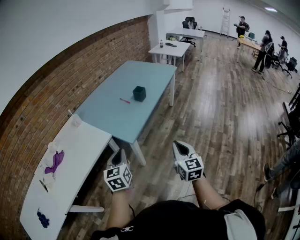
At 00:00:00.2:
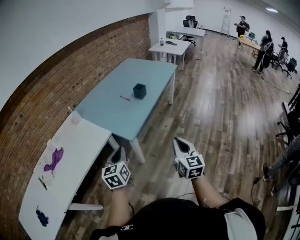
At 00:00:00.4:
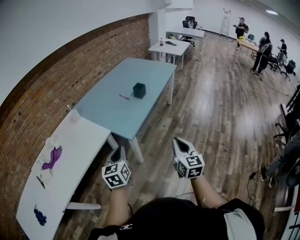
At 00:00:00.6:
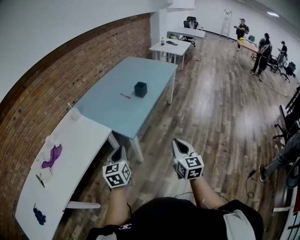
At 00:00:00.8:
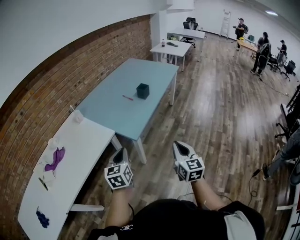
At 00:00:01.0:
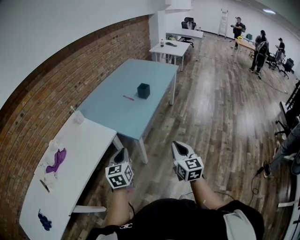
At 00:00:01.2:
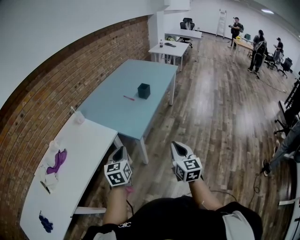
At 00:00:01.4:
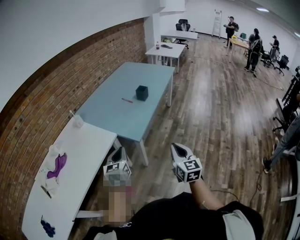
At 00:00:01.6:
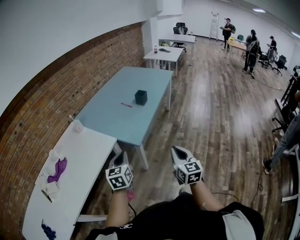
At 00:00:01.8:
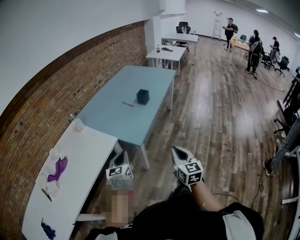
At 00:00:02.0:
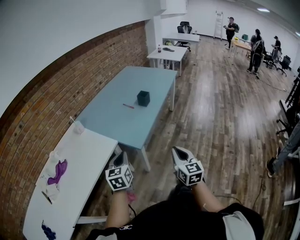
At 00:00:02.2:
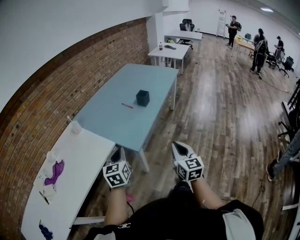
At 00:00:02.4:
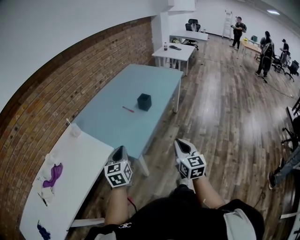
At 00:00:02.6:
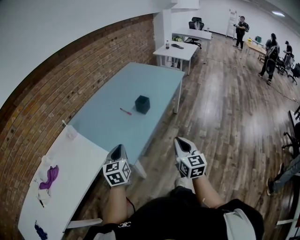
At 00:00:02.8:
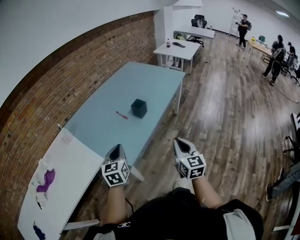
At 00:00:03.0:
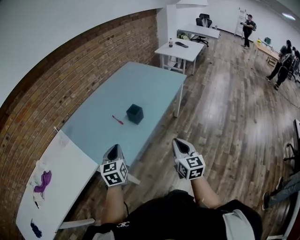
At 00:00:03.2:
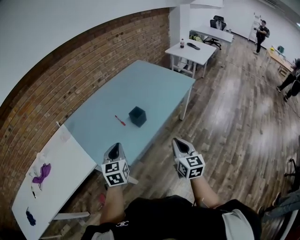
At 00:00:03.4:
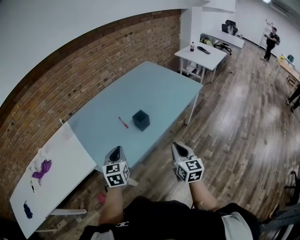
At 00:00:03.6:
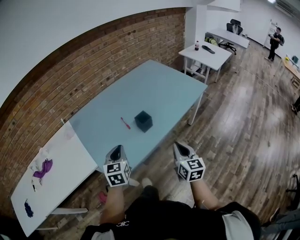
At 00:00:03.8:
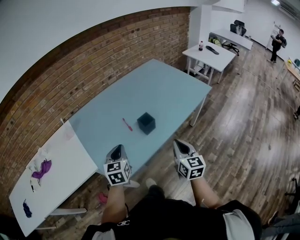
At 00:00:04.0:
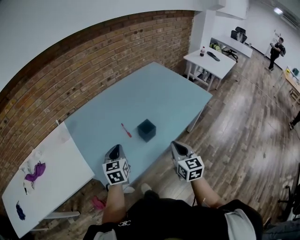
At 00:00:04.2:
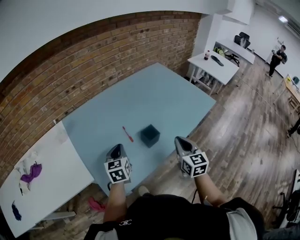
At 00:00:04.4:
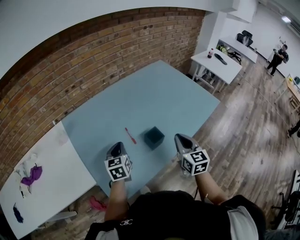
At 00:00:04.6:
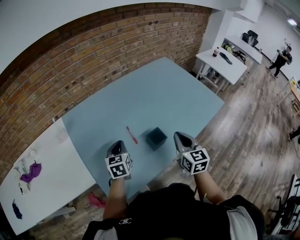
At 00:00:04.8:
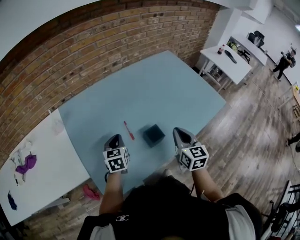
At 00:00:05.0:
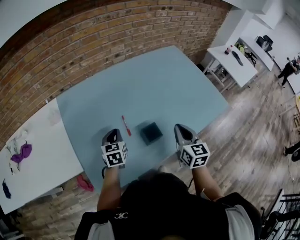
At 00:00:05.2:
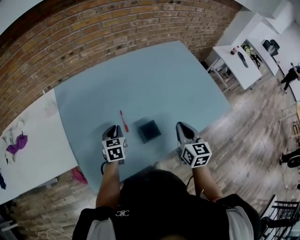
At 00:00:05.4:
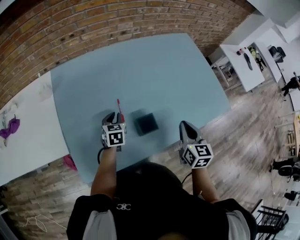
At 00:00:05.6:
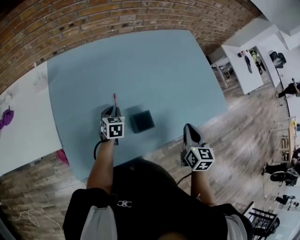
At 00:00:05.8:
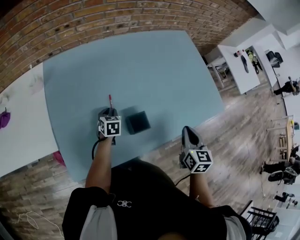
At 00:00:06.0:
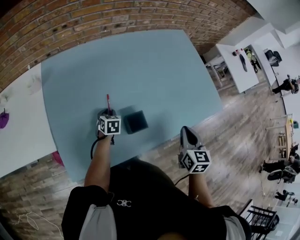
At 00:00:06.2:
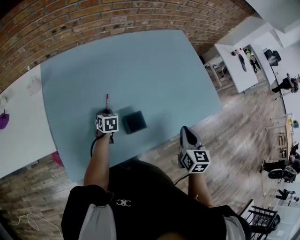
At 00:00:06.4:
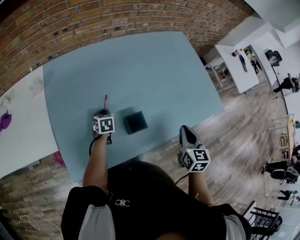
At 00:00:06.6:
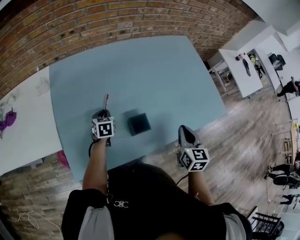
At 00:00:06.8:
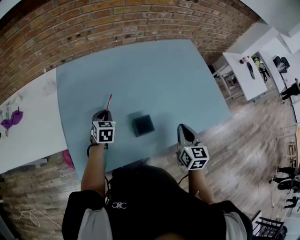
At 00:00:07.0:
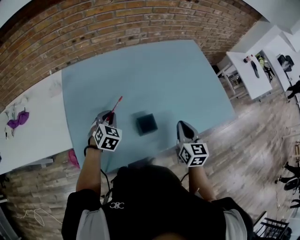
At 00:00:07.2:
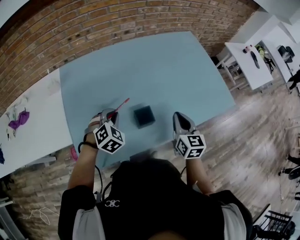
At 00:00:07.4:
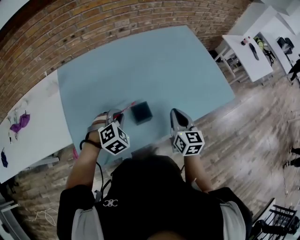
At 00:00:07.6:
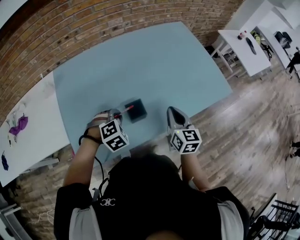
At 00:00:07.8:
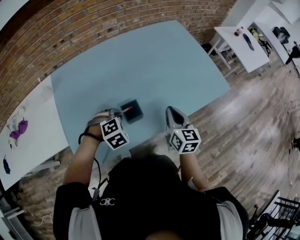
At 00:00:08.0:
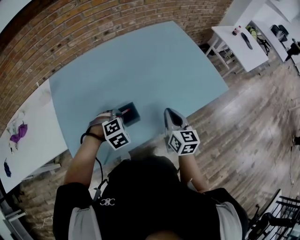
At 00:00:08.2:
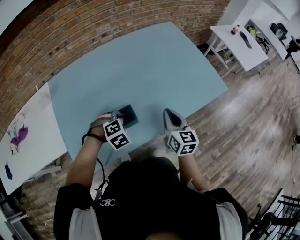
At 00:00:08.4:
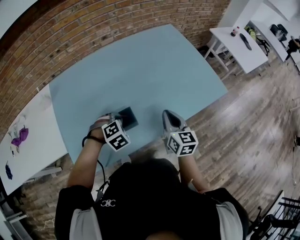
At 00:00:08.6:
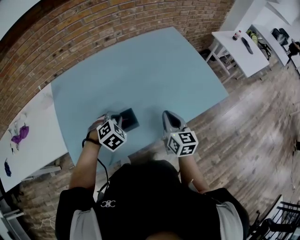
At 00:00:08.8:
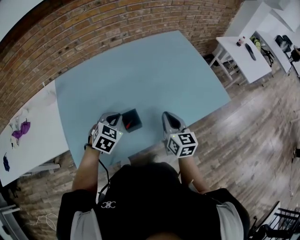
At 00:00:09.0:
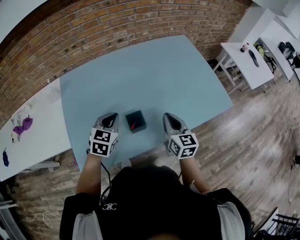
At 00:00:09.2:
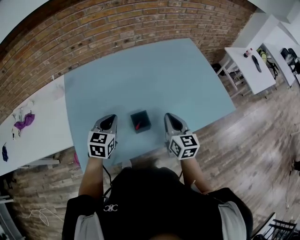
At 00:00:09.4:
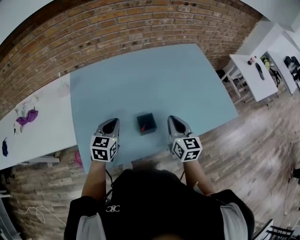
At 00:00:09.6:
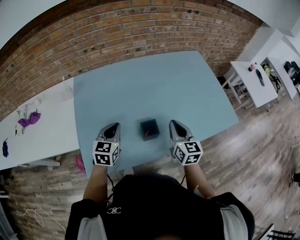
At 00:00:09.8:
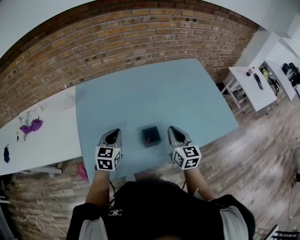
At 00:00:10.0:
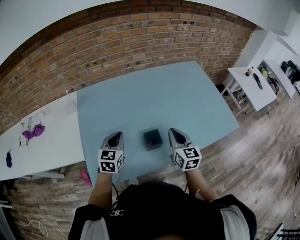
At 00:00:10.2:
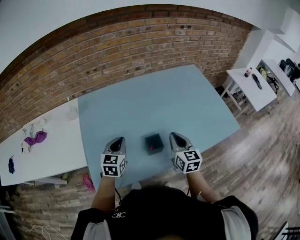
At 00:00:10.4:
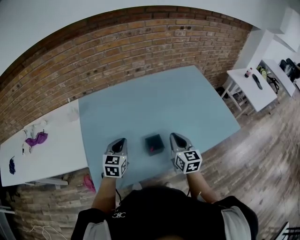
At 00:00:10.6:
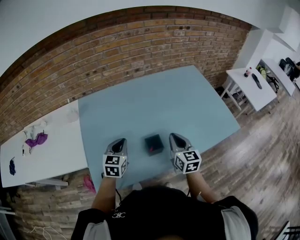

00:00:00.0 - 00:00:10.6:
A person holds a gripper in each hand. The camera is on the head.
00:00:00.0 - 00:00:01.6: Both grippers travel together to the left, roughly 10 cm.
00:00:01.6 - 00:00:03.0: The grippers both shift forward and to the right by some 35 cm.
00:00:03.0 - 00:00:04.6: The two grippers go approximately 30 cm forward. The left gripper rotates approximately 20 degrees. The right gripper changes its angle by about 20 degrees.
00:00:04.6 - 00:00:06.0: The left gripper is displaced downward by about 20 cm, swivels some 20 degrees, and opens, while the right gripper travels to the right by roughly 15 cm.
00:00:06.0 - 00:00:07.6: The left gripper shifts roughly 20 cm upward and backward, and rotates around the line of its fingers by about 70 degrees, clockwise from behind.
00:00:07.6 - 00:00:09.0: The left gripper is displaced upward by approximately 10 cm, and rotates around the line of its fingers by roughly 40 degrees, counterclockwise from behind.
00:00:09.0 - 00:00:10.6: The two grippers go roughly 5 cm to the left.

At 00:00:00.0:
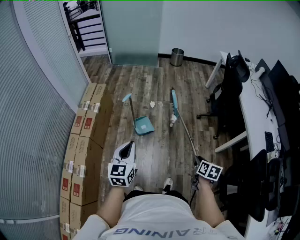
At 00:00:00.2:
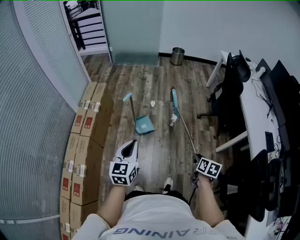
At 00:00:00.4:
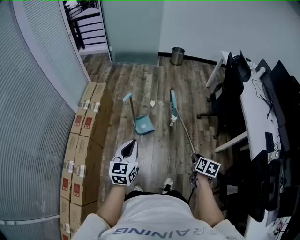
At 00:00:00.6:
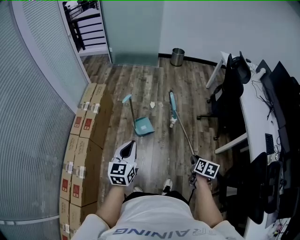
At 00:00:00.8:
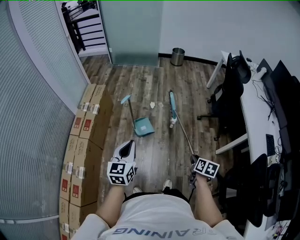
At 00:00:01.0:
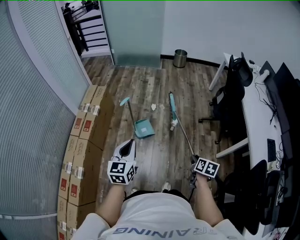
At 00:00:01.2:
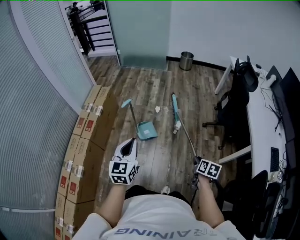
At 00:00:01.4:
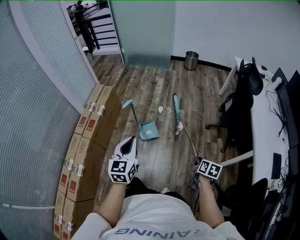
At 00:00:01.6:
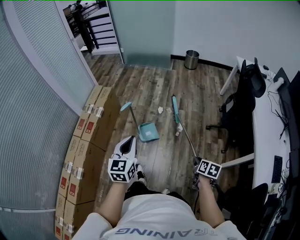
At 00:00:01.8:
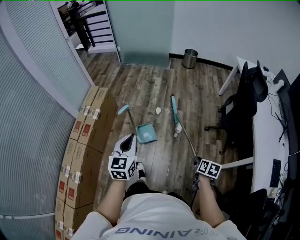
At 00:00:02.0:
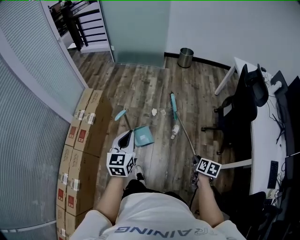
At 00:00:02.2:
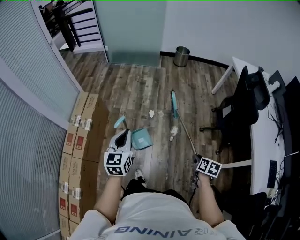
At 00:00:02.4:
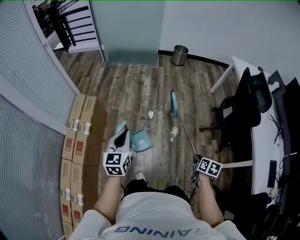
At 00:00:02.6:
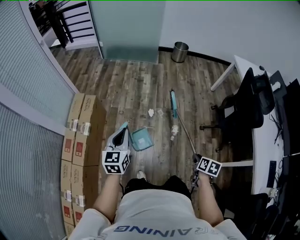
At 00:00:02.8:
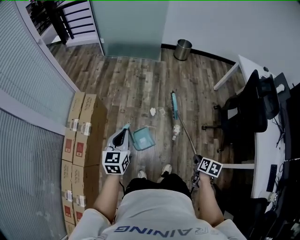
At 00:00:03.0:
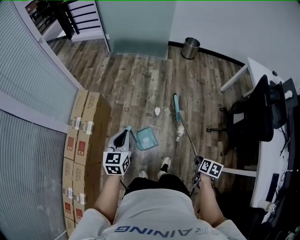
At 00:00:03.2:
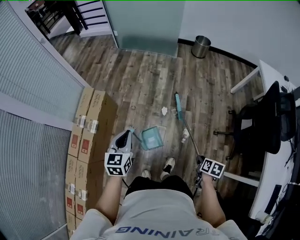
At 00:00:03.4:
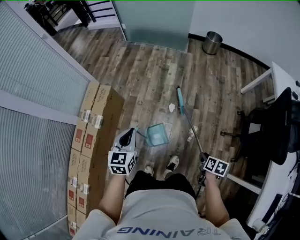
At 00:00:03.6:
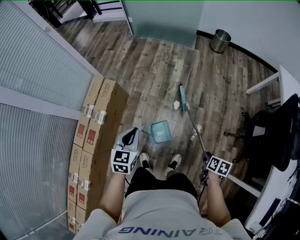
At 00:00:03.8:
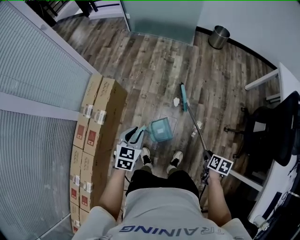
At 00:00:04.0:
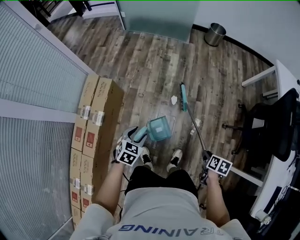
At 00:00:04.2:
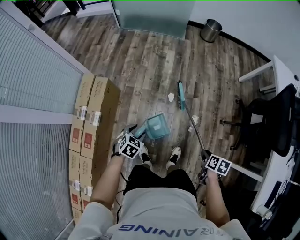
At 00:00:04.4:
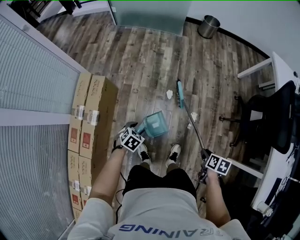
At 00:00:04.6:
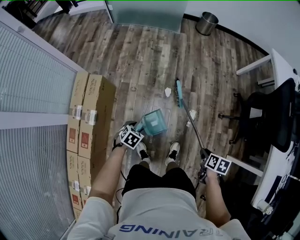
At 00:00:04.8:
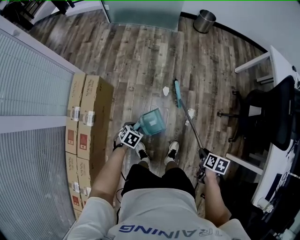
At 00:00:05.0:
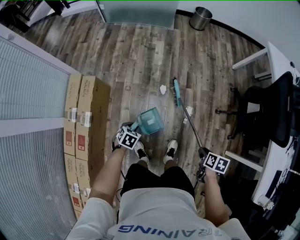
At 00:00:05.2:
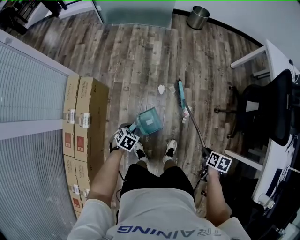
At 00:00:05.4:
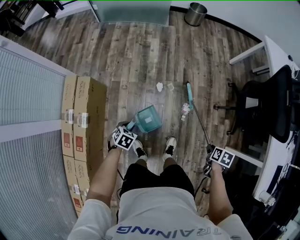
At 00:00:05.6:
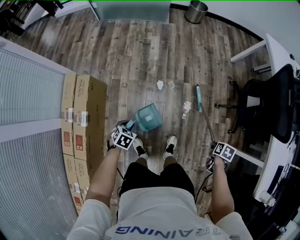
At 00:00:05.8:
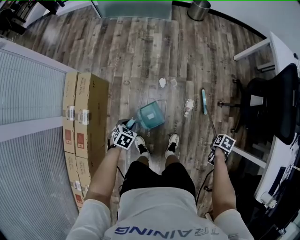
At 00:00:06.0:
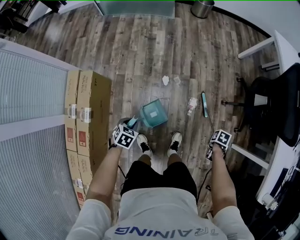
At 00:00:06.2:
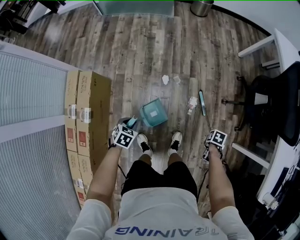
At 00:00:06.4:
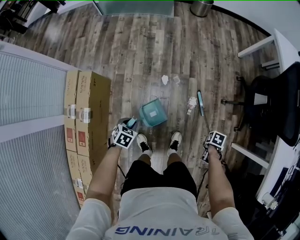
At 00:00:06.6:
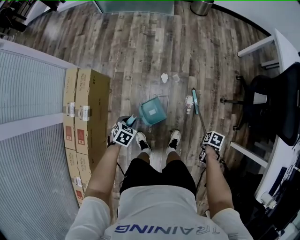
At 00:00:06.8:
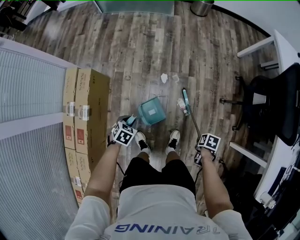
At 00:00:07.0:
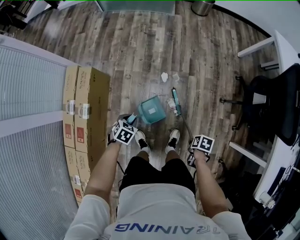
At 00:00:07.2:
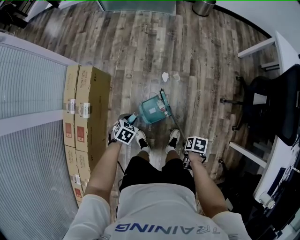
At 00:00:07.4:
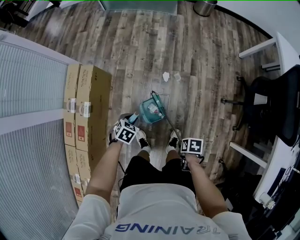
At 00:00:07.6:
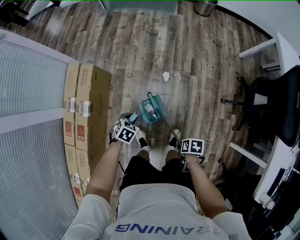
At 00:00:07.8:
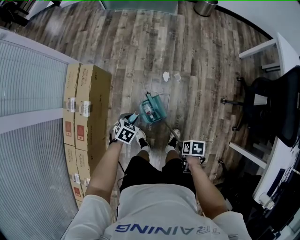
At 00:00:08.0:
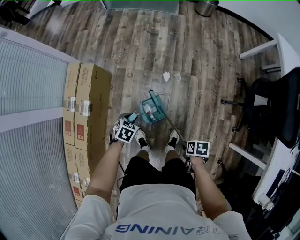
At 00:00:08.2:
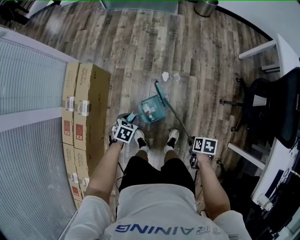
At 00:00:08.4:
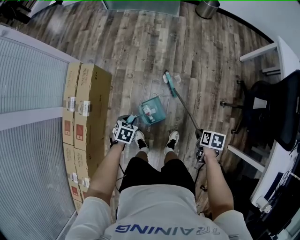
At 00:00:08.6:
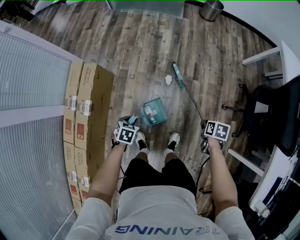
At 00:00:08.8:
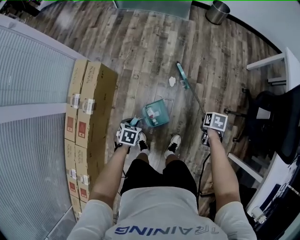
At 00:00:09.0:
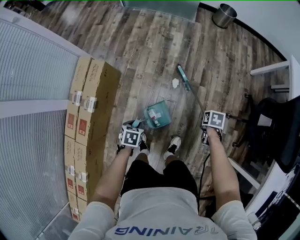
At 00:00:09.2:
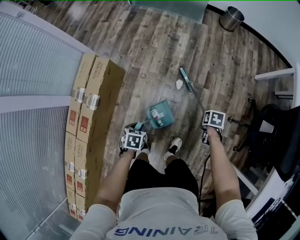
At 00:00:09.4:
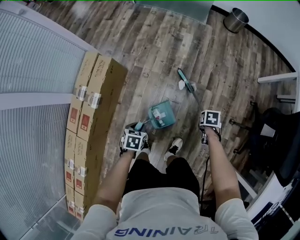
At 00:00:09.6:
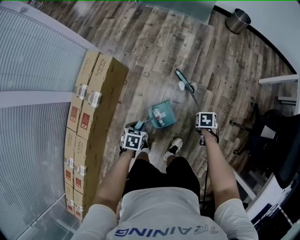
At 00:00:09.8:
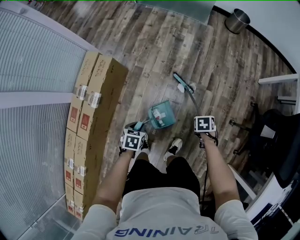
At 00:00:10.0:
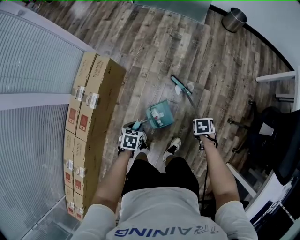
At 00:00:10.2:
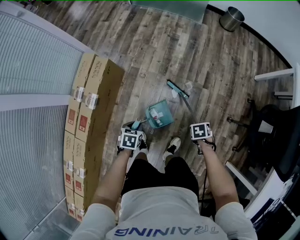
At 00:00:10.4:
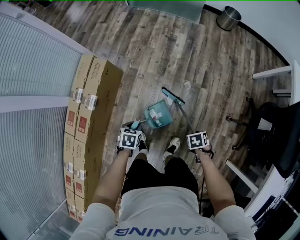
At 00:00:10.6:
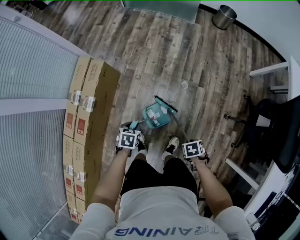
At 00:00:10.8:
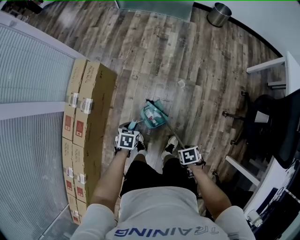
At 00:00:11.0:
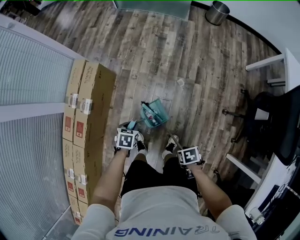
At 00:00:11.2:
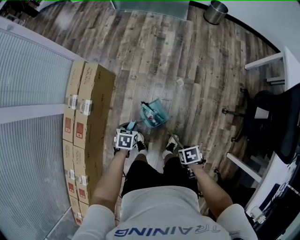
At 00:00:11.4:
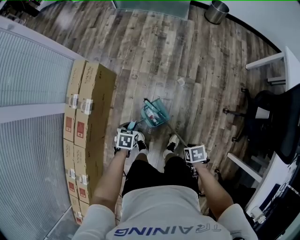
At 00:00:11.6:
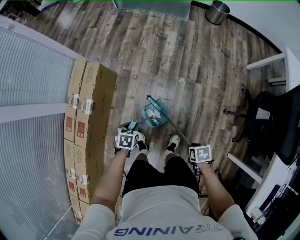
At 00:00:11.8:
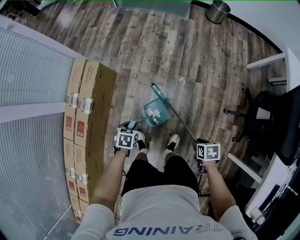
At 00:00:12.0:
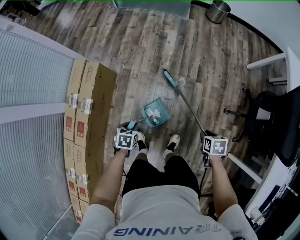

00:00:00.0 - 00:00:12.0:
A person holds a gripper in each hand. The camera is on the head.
00:00:00.0 - 00:00:01.6: The left gripper moves roughly 15 cm.
00:00:01.6 - 00:00:03.0: The left gripper ends up about 35 cm from where it was.
00:00:03.0 - 00:00:04.4: The left gripper travels downward by about 25 cm, points its fingers some 40 degrees further downward, and opens its fingers.
00:00:04.4 - 00:00:06.0: The left gripper closes its fingers.
00:00:07.6 - 00:00:09.0: The left gripper changes its angle by about 30 degrees.

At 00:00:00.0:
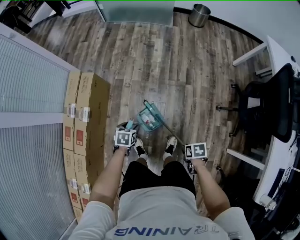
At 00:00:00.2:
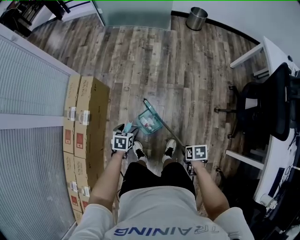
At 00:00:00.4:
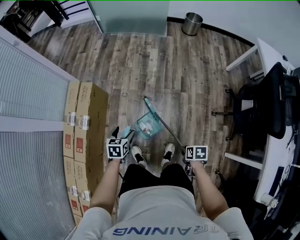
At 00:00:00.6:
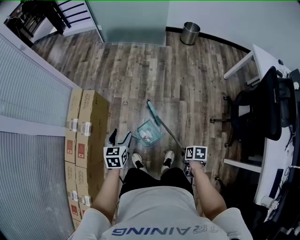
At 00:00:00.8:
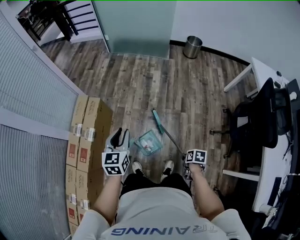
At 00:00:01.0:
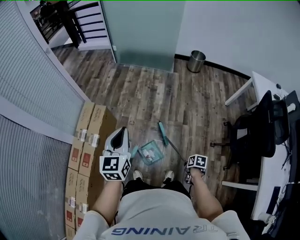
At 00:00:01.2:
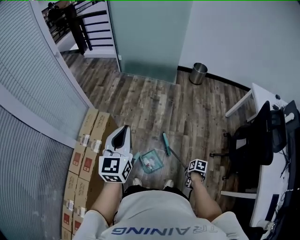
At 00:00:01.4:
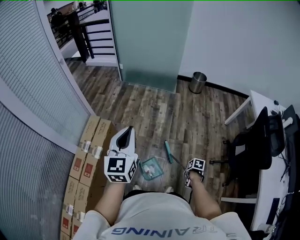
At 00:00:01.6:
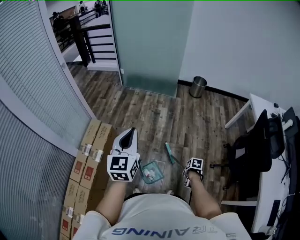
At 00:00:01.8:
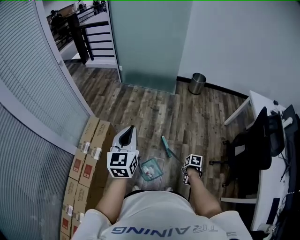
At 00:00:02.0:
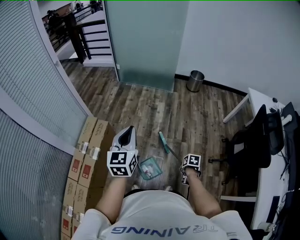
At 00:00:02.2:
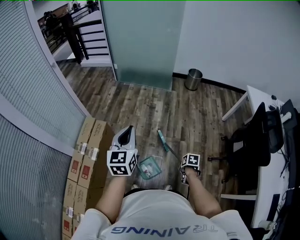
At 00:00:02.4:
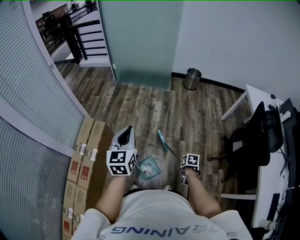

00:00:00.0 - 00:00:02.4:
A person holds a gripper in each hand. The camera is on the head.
00:00:00.0 - 00:00:01.2: The left gripper travels upward by roughly 50 cm, tilts its fingers approximately 60 degrees upward, and closes up.
00:00:01.2 - 00:00:02.4: The left gripper shifts by about 5 cm.
